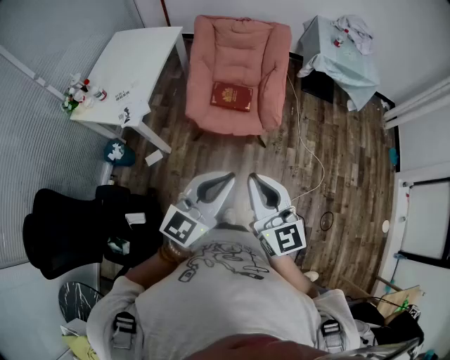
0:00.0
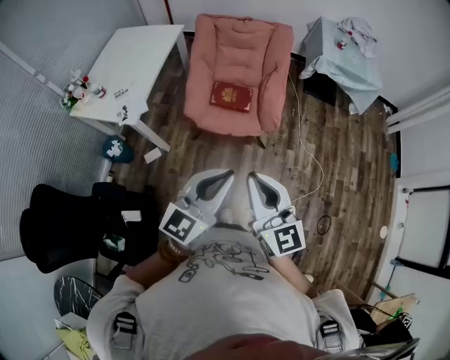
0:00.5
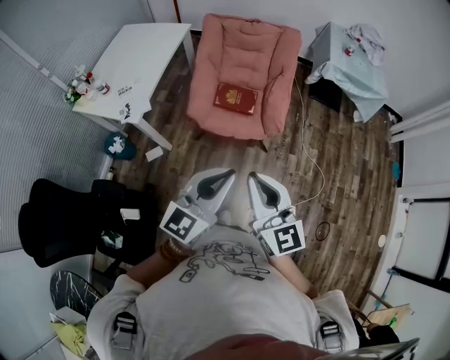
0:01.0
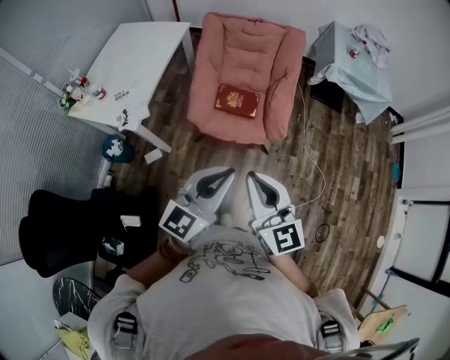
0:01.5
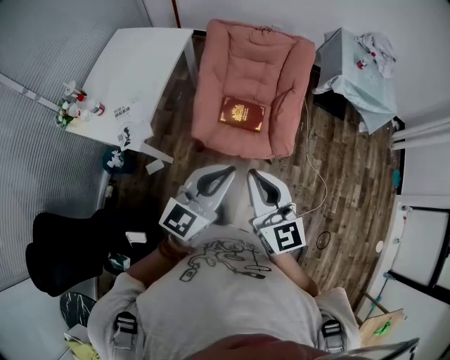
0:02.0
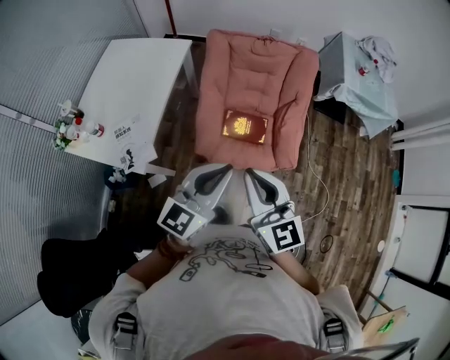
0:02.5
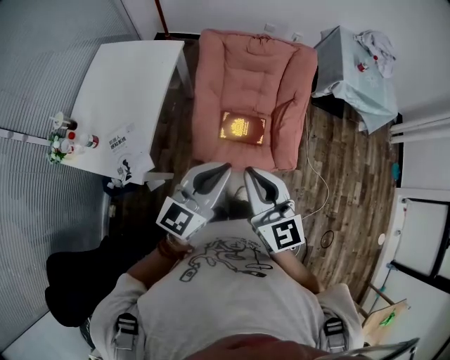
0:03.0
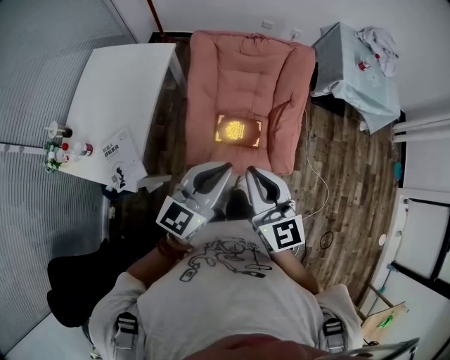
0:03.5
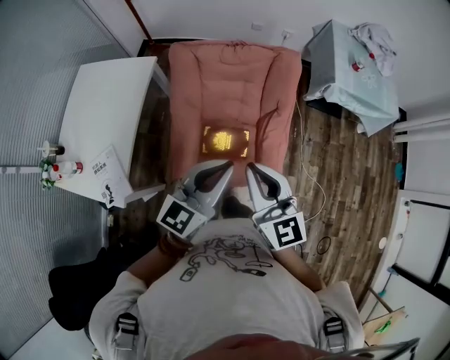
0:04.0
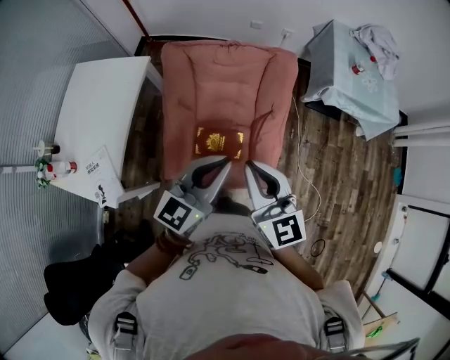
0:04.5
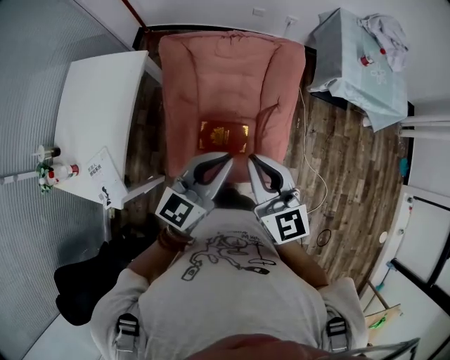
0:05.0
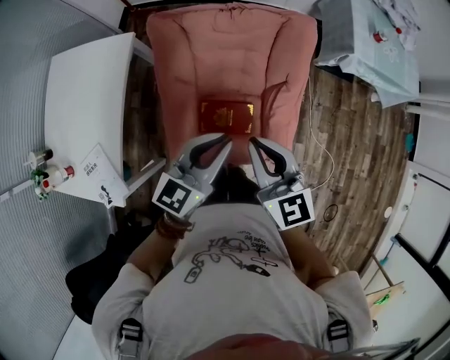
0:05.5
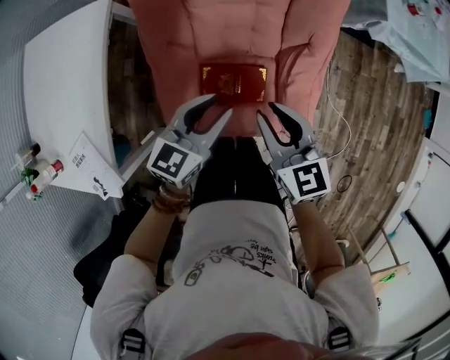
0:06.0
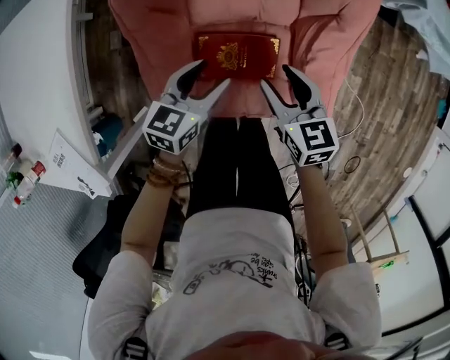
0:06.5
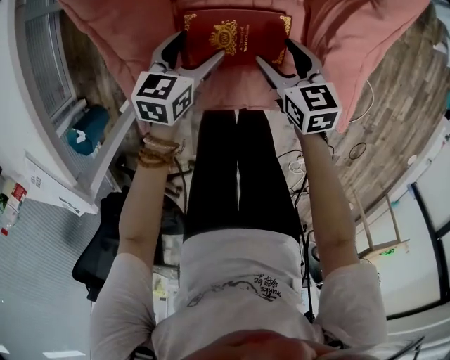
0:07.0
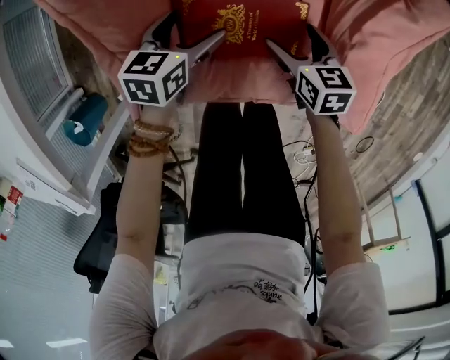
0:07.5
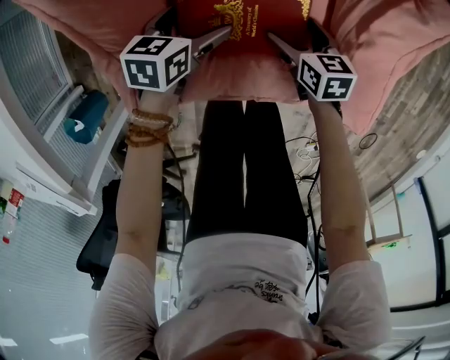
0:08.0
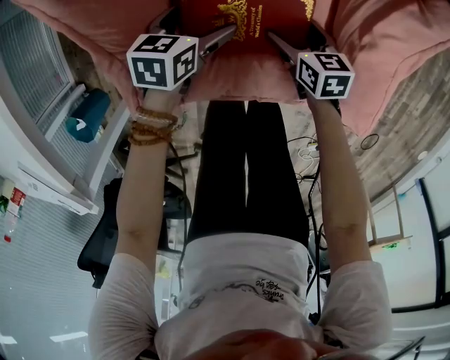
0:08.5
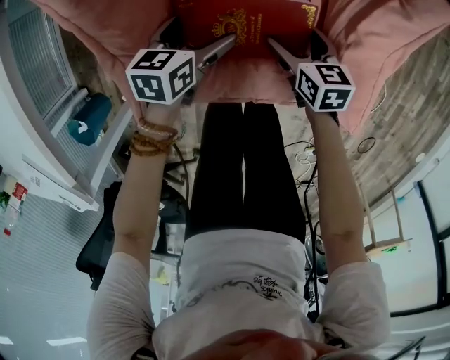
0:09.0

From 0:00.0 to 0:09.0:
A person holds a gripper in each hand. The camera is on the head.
From 0:00.0 to 0:02.0: The two grippers go roughly 25 cm forward.
From 0:02.0 to 0:04.5: The grippers both shift forward by approximately 35 cm.
From 0:04.5 to 0:07.0: Both grippers travel together downward, about 70 cm. The right gripper angles its fingers downward, by approximately 40 degrees, and opens its fingers; the left gripper angles its fingers downward, by about 40 degrees, and opens up.
From 0:07.0 to 0:09.0: The right gripper goes about 10 cm downward.

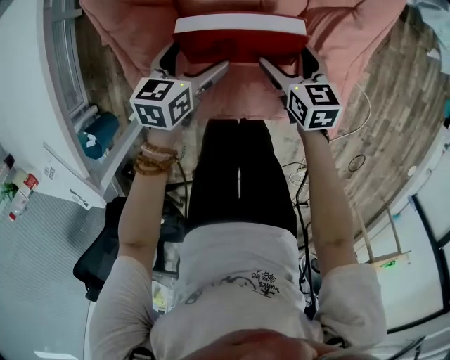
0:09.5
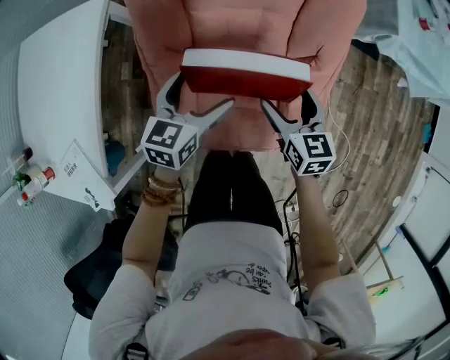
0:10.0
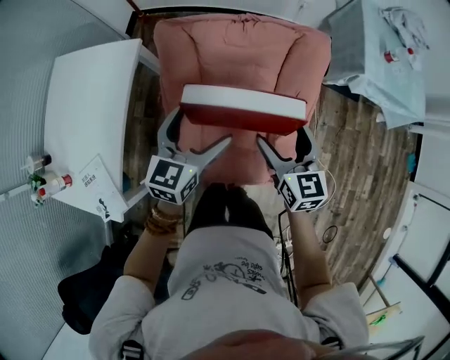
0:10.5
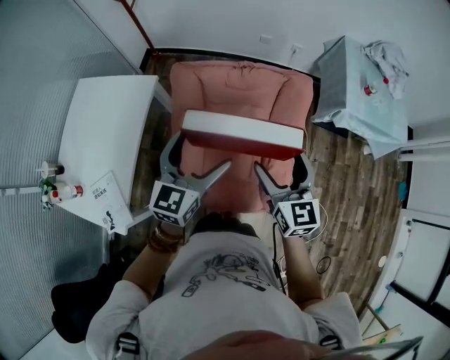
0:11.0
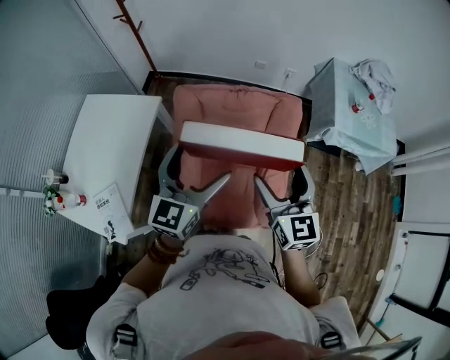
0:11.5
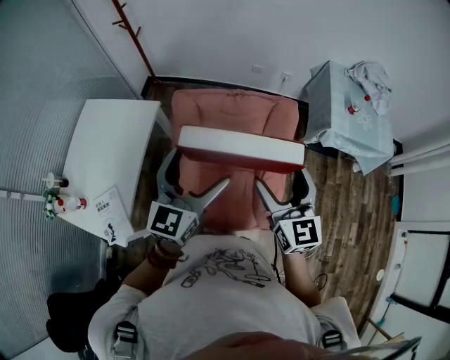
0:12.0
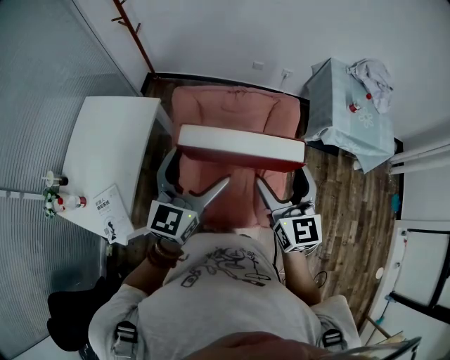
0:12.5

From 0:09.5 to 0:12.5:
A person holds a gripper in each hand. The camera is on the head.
From 0:09.5 to 0:11.0: Both grippers travel together upward, roughly 60 cm. The left gripper turns by some 40 degrees; the right gripper swivels roughly 40 degrees.
From 0:11.0 to 0:12.5: Both grippers move upward, approximately 10 cm.

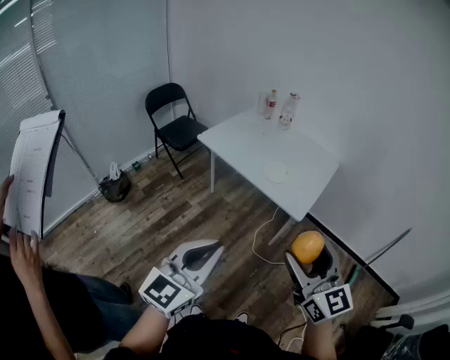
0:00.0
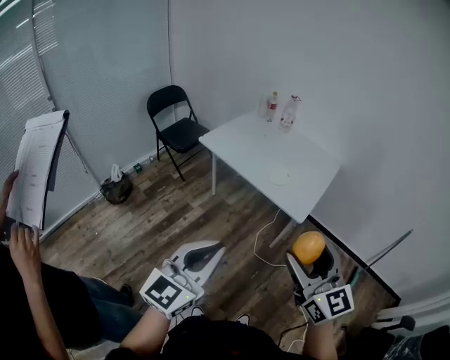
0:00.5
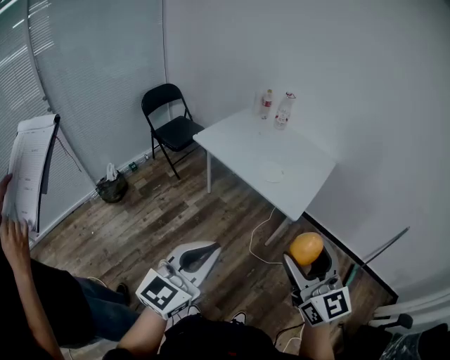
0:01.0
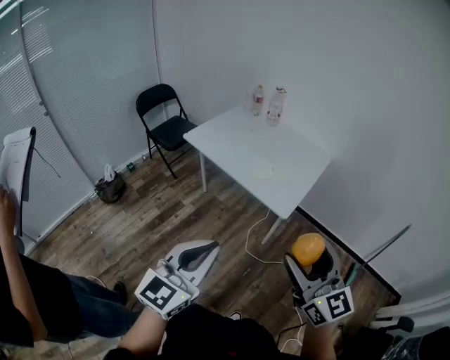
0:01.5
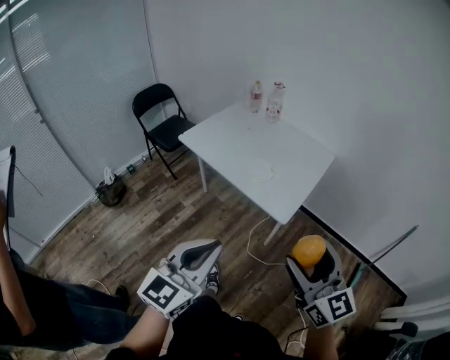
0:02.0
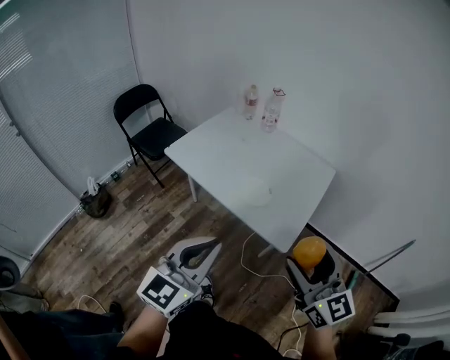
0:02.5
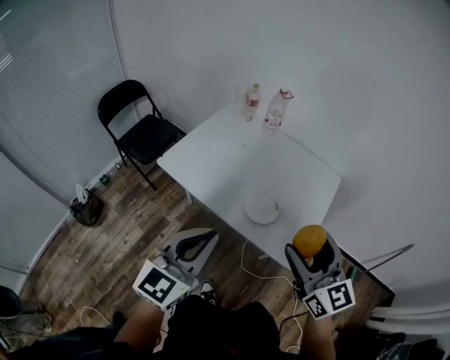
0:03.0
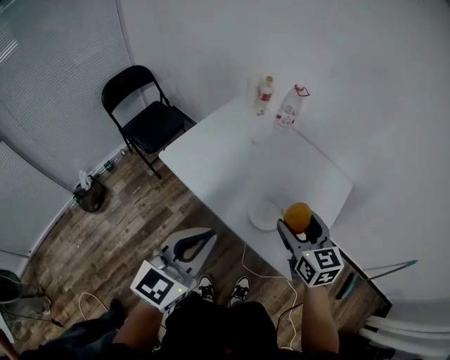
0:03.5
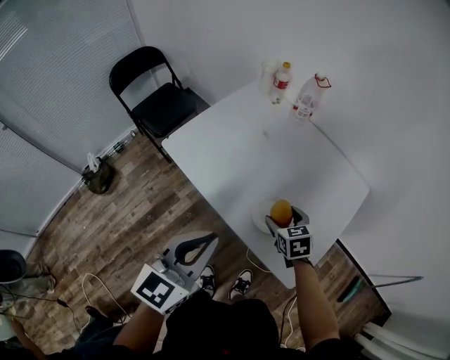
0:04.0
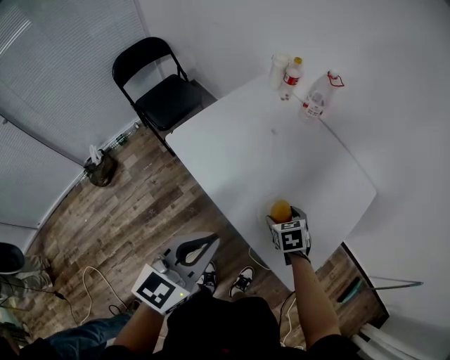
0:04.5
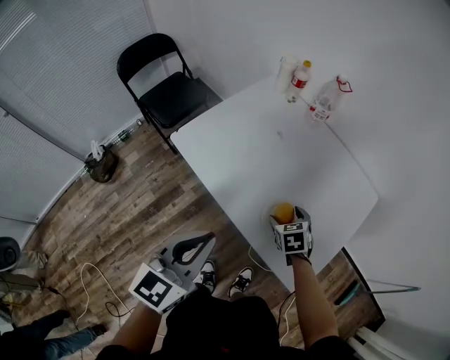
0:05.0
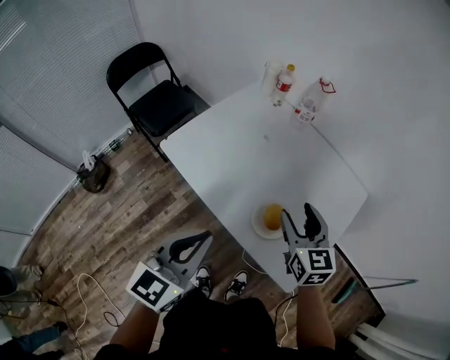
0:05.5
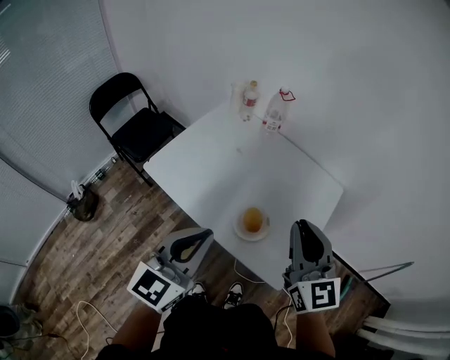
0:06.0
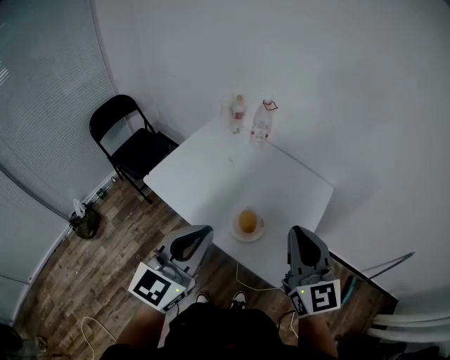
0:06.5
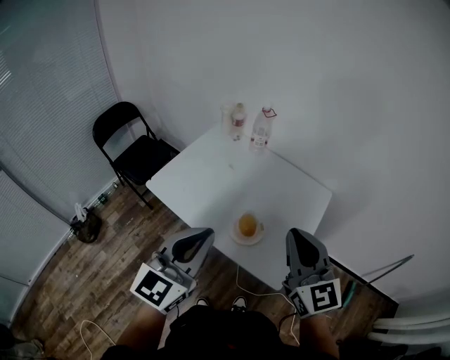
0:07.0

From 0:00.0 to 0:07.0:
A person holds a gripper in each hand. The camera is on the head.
From 0:00.0 to 0:02.0: Both grippers move to the right and forward, approximately 15 cm.
From 0:02.0 to 0:03.5: The pair of grippers is taken forward, roughly 40 cm. The right gripper swivels about 30 degrees.
From 0:03.5 to 0:05.0: The left gripper heads downward, covering roughly 5 cm. Meanwhile the right gripper heads downward, covering approximately 25 cm, and tilts its fingers about 40 degrees downward.
From 0:05.0 to 0:07.0: The right gripper is displaced upward and backward by about 40 cm, tips its fingers upward by some 60 degrees, and closes its fingers; the left gripper travels upward and to the right by some 15 cm, and rotates roughly 20 degrees.

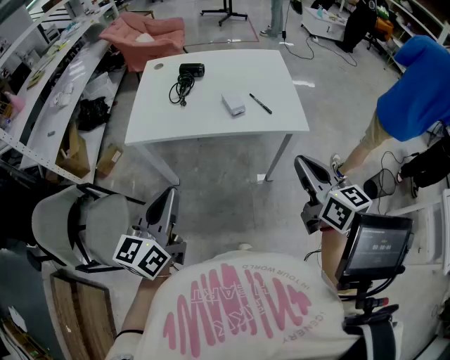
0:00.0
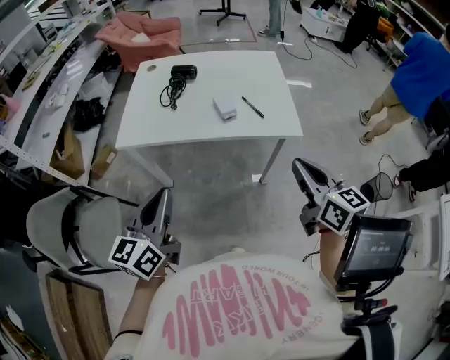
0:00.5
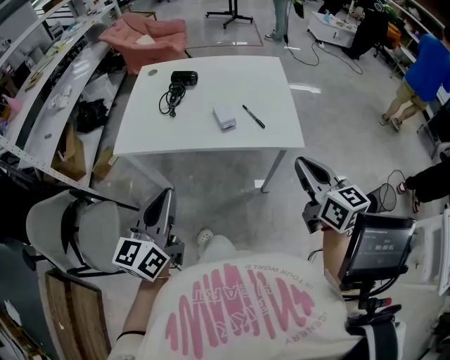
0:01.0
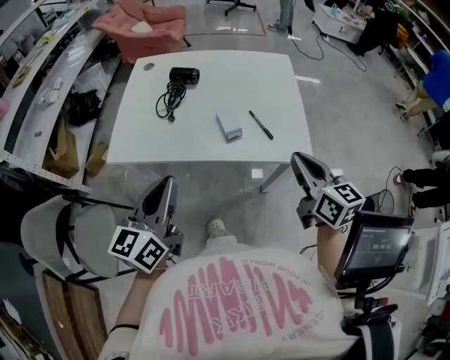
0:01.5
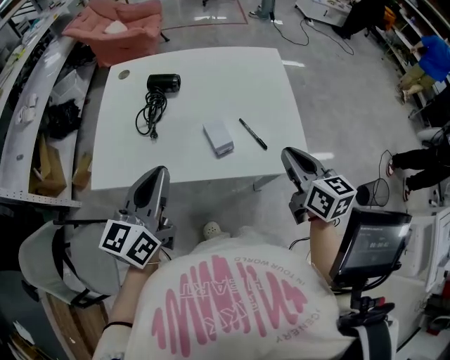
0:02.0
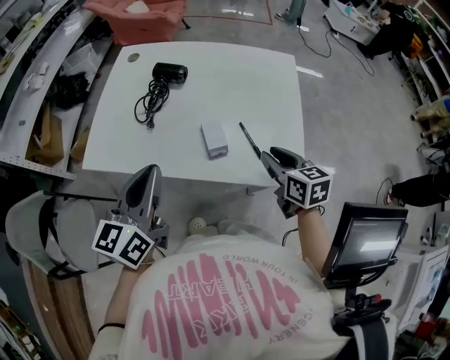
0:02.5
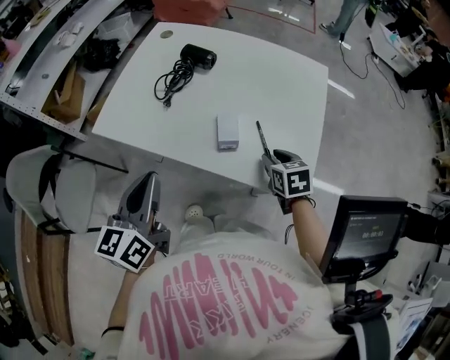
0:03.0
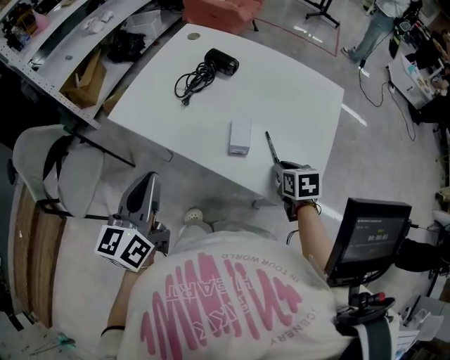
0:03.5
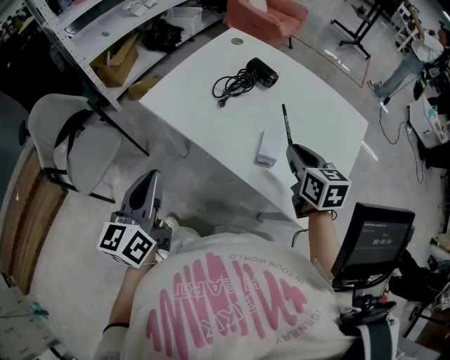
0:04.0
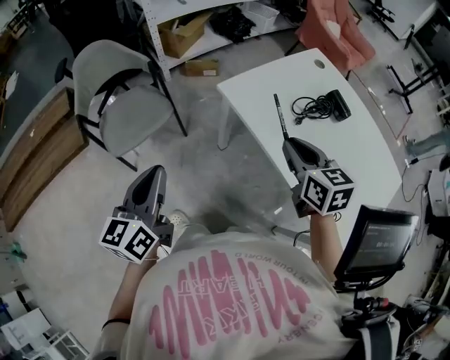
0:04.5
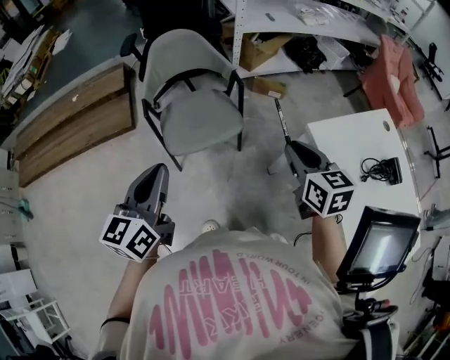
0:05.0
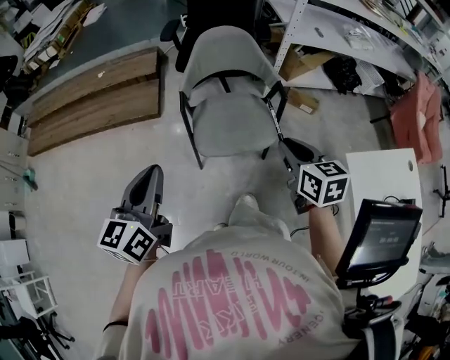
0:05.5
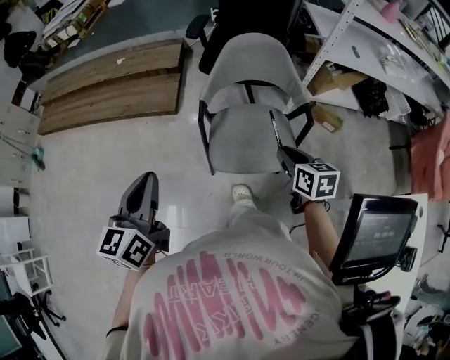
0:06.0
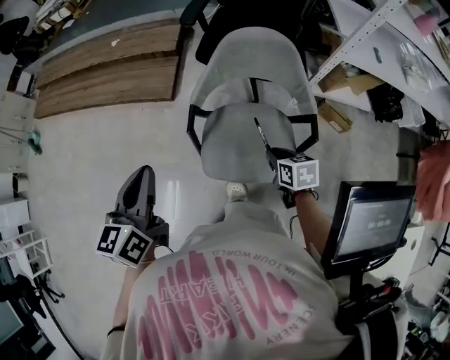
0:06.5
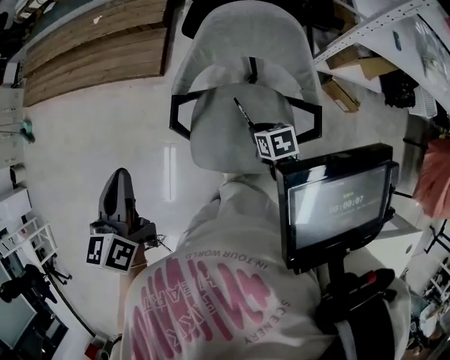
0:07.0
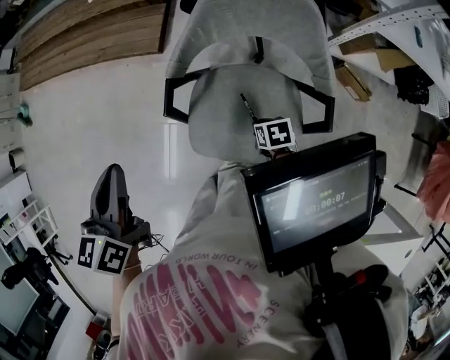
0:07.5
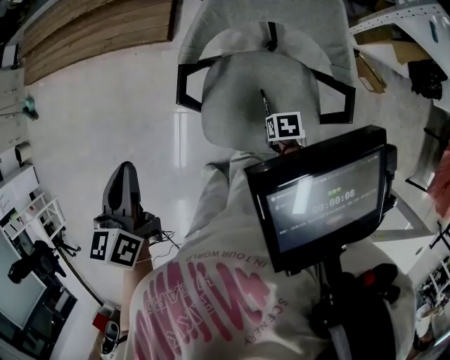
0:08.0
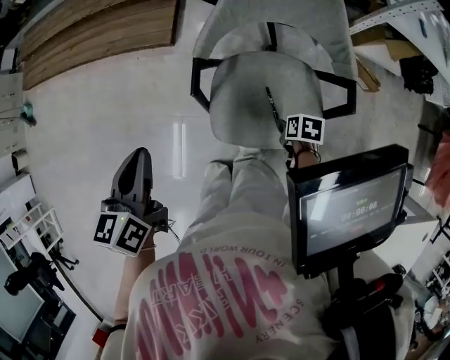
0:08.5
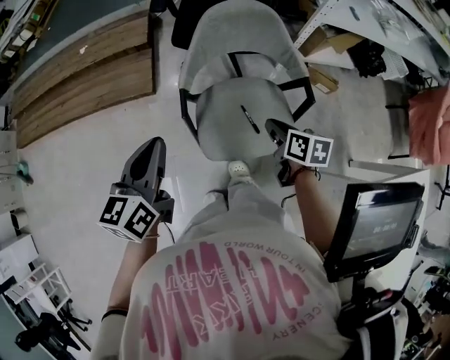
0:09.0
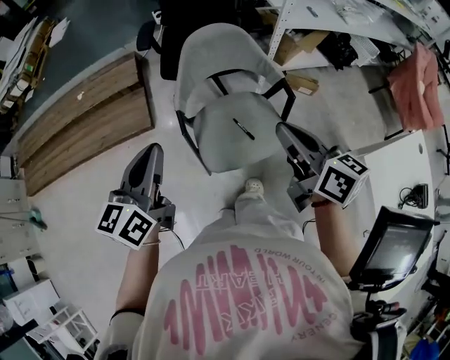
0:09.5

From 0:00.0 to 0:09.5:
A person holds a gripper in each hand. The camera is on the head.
From 0:00.0 to 0:02.0: The left gripper goes approximately 25 cm forward; the right gripper shifts some 25 cm forward and downward.
From 0:02.0 to 0:04.0: The left gripper shifts by about 15 cm, and changes its angle by about 50 degrees; the right gripper goes downward and returns, roughly 15 cm each way, and turns by approximately 40 degrees.
From 0:04.0 to 0:05.5: The two grippers travel together, roughly 60 cm. The left gripper changes its angle by roughly 40 degrees. Meanwhile the right gripper swivels roughly 50 degrees.
From 0:05.5 to 0:07.5: The right gripper is displaced downward by some 35 cm, and points its fingers about 40 degrees further downward. The left gripper changes place by some 20 cm, and changes its angle by approximately 40 degrees.
From 0:07.5 to 0:09.5: The right gripper travels upward by about 40 cm, and points its fingers some 60 degrees further upward, while the left gripper moves upward, approximately 5 cm, and swivels about 40 degrees.
